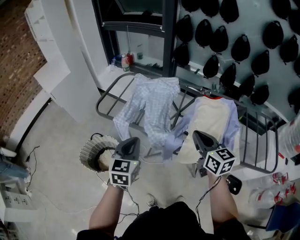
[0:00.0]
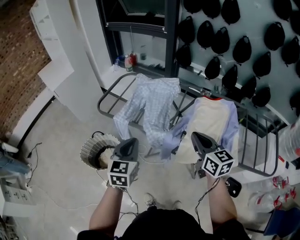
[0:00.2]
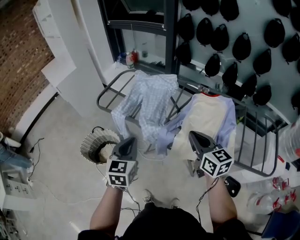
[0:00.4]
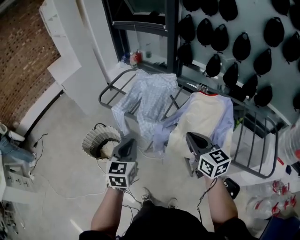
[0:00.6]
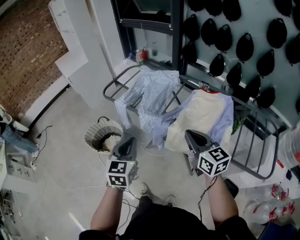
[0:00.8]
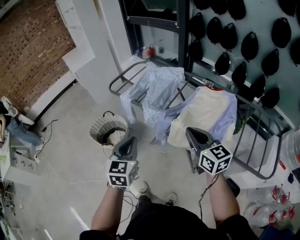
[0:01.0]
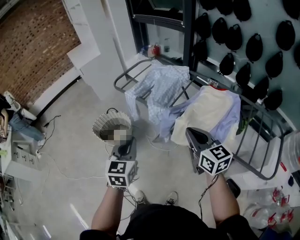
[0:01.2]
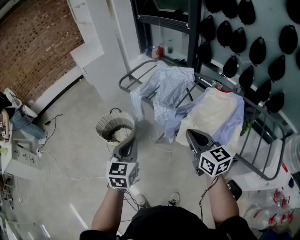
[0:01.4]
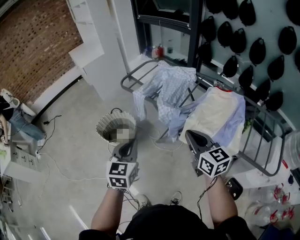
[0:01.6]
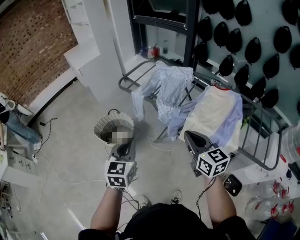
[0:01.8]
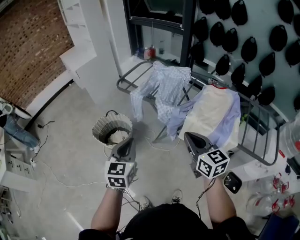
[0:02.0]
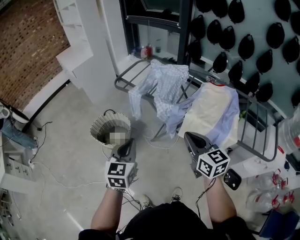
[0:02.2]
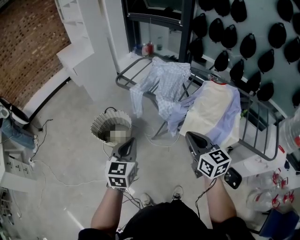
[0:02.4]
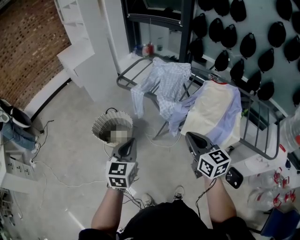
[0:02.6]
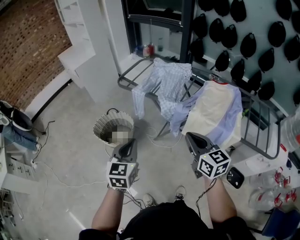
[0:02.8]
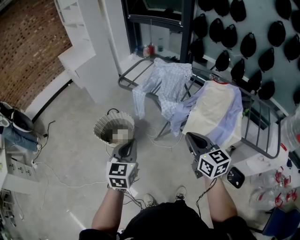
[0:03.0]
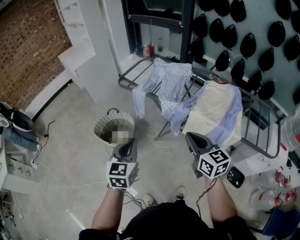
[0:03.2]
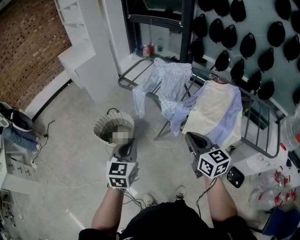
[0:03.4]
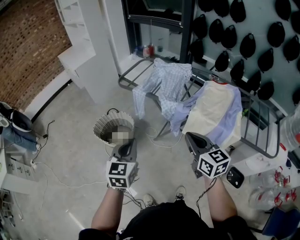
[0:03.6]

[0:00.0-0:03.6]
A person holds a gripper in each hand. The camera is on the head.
0:00.0 to 0:01.8: The right gripper is displaced backward and to the left by some 20 cm. Meanwhile the left gripper travels backward by approximately 20 cm.
0:01.8 to 0:03.6: The grippers move only a little.

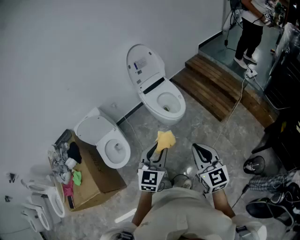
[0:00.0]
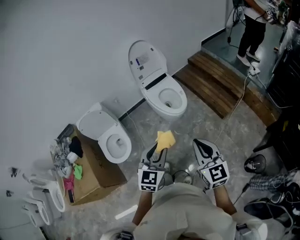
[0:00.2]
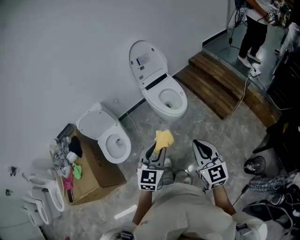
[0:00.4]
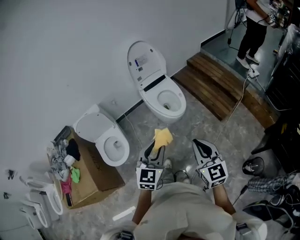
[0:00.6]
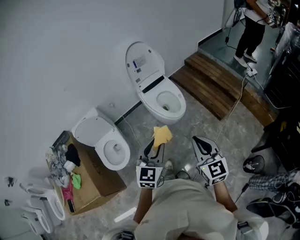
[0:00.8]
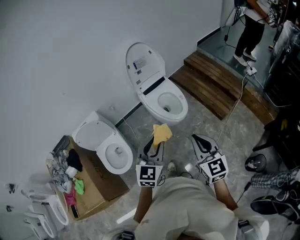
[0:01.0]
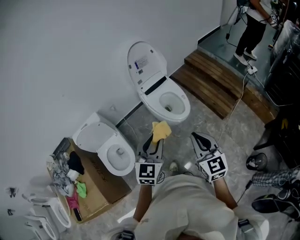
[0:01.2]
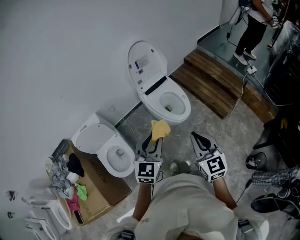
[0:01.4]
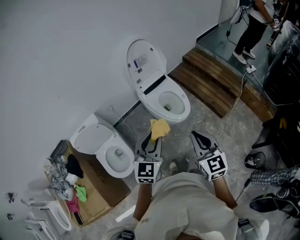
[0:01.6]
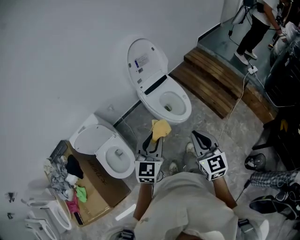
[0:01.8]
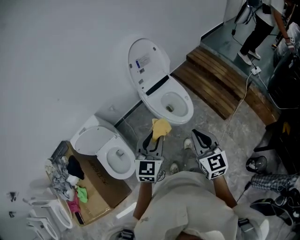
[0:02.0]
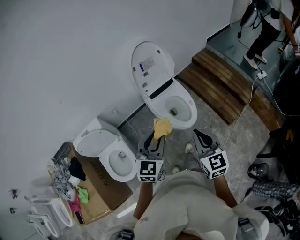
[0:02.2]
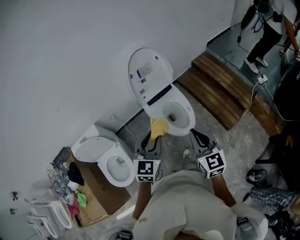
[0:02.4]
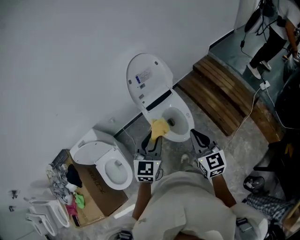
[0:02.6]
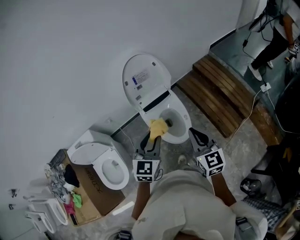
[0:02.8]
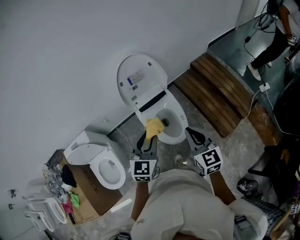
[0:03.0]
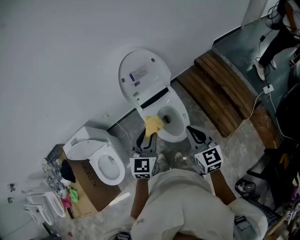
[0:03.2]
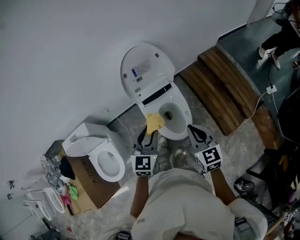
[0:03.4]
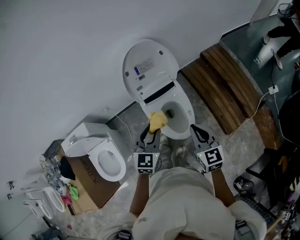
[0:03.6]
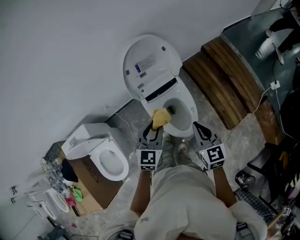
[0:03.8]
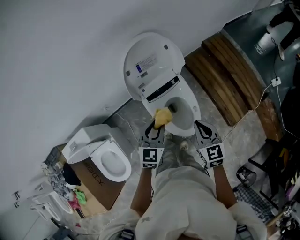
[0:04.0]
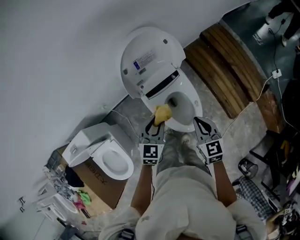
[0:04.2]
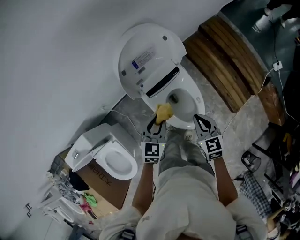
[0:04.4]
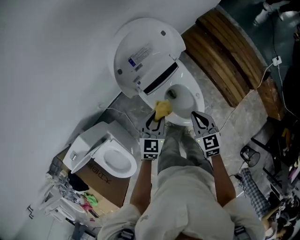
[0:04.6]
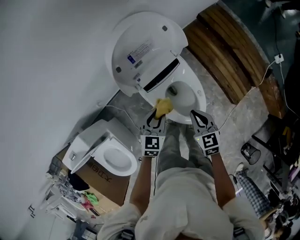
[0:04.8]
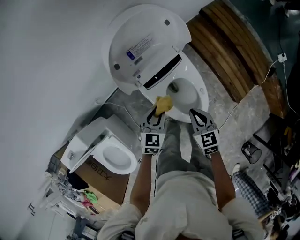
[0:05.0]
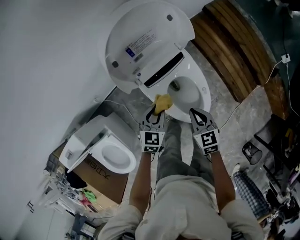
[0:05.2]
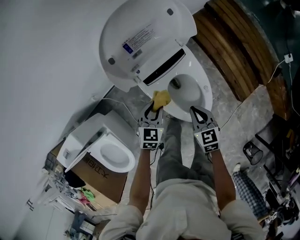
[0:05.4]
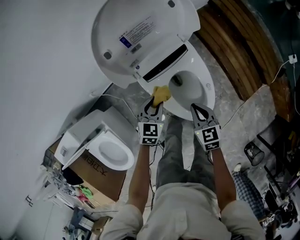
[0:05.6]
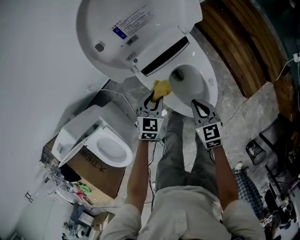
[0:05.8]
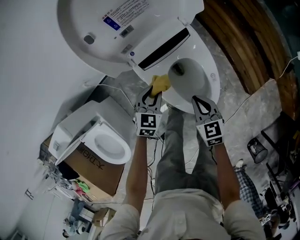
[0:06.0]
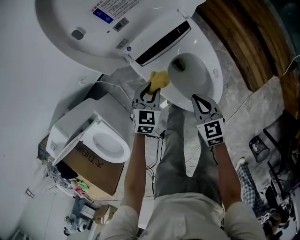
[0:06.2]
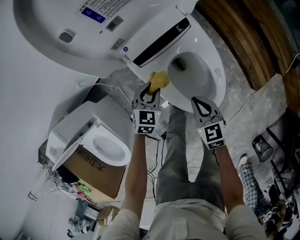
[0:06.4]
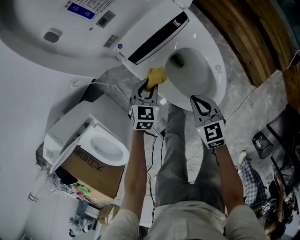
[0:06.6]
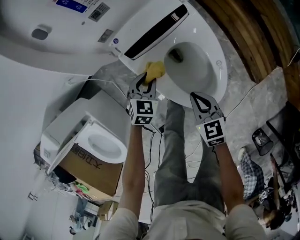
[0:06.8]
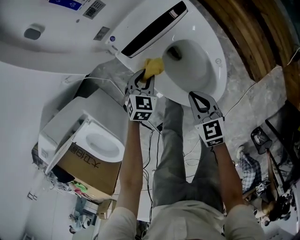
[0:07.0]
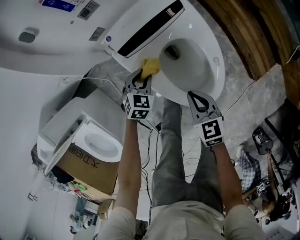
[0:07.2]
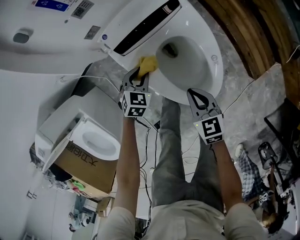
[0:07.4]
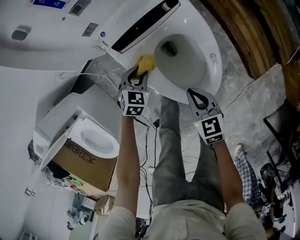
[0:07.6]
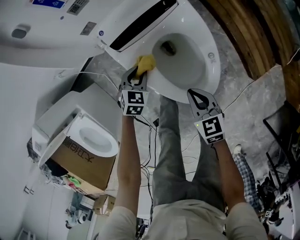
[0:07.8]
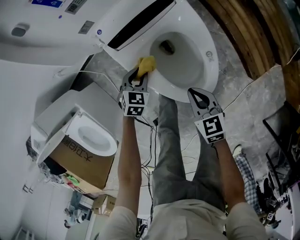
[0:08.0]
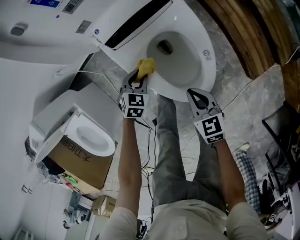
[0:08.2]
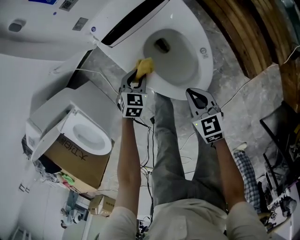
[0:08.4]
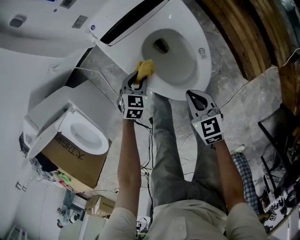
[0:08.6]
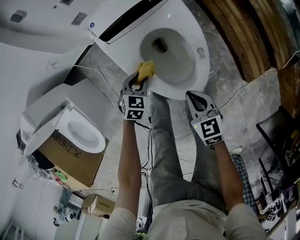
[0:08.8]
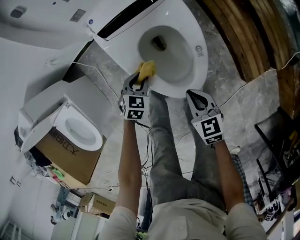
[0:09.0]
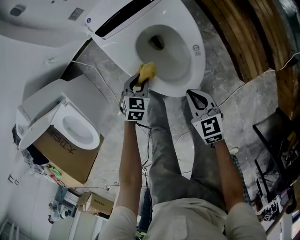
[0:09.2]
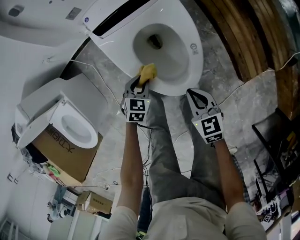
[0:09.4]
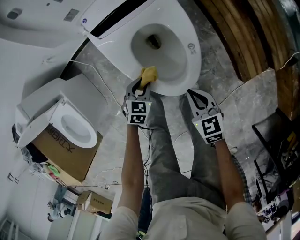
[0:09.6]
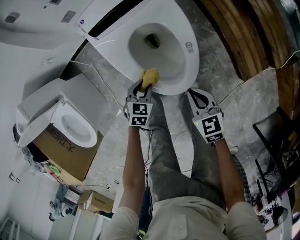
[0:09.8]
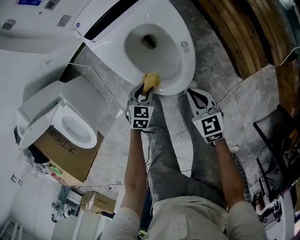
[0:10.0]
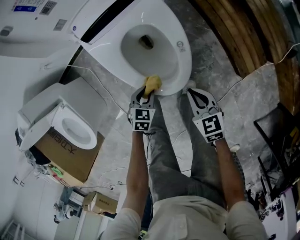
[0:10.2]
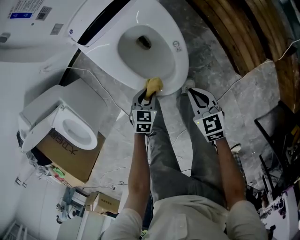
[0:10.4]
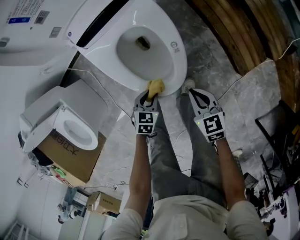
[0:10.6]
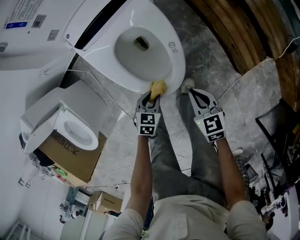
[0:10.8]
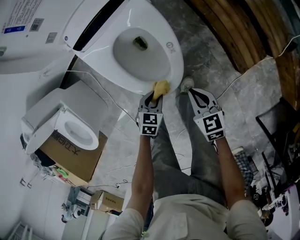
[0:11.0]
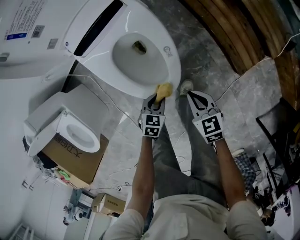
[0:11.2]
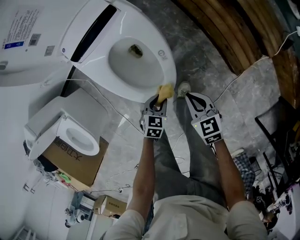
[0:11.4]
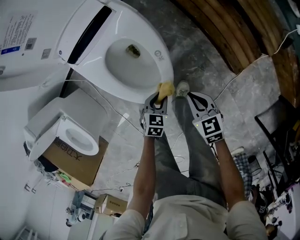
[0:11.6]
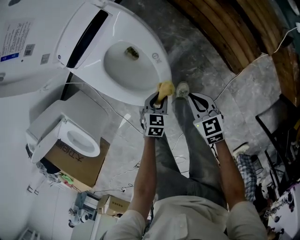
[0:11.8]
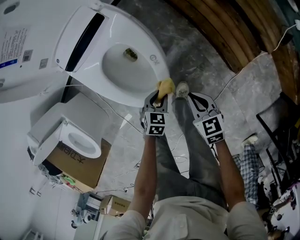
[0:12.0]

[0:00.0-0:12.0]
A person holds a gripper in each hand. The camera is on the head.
0:00.0 to 0:01.6: Both grippers move forward and to the left, some 20 cm.
0:01.6 to 0:03.0: The grippers both shift forward by about 25 cm.
0:03.0 to 0:04.4: The two grippers go approximately 30 cm downward and forward. The right gripper swivels some 20 degrees.
0:04.4 to 0:06.0: Both grippers travel together downward, some 25 cm.
0:06.0 to 0:07.6: The right gripper is displaced downward and backward by roughly 10 cm. The left gripper heads downward, covering approximately 15 cm.
0:07.6 to 0:09.0: The left gripper is displaced backward and to the right by about 10 cm. Meanwhile the right gripper goes roughly 10 cm to the right and backward.
0:09.0 to 0:10.4: The right gripper goes roughly 10 cm to the right, while the left gripper travels backward and to the right by roughly 15 cm.
0:10.4 to 0:12.0: The right gripper is displaced to the right by about 10 cm. The left gripper shifts roughly 15 cm to the right.

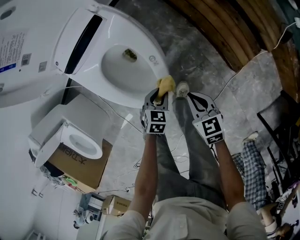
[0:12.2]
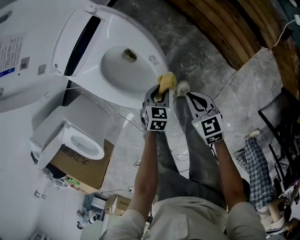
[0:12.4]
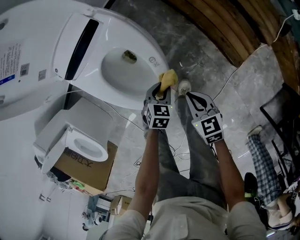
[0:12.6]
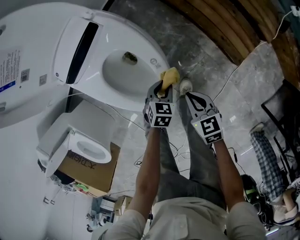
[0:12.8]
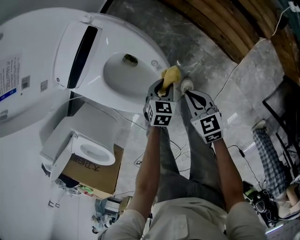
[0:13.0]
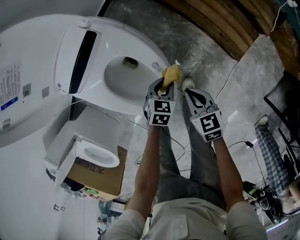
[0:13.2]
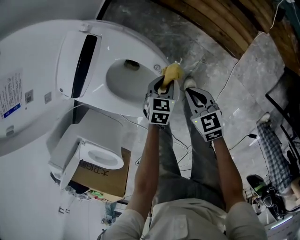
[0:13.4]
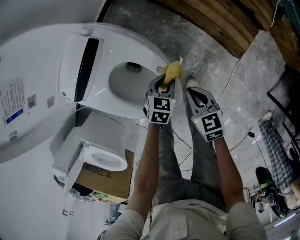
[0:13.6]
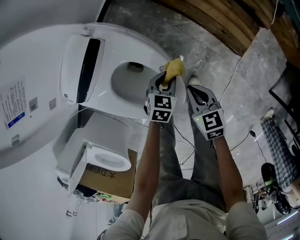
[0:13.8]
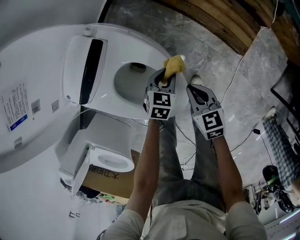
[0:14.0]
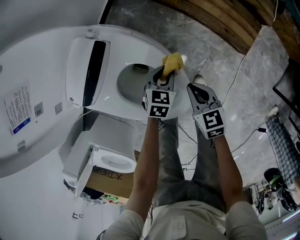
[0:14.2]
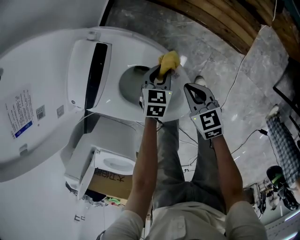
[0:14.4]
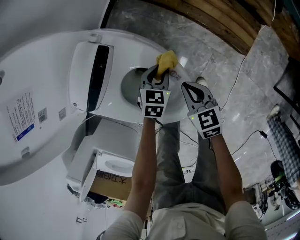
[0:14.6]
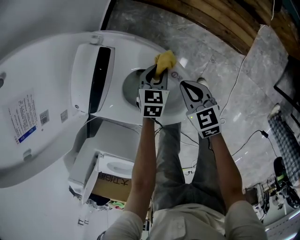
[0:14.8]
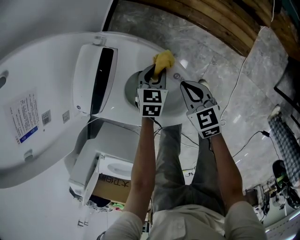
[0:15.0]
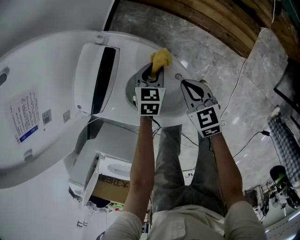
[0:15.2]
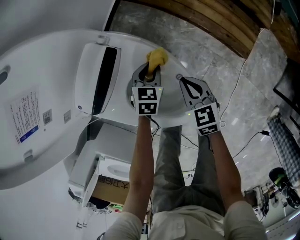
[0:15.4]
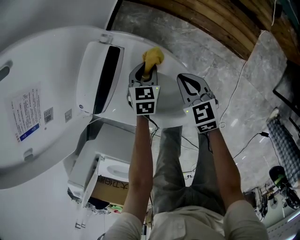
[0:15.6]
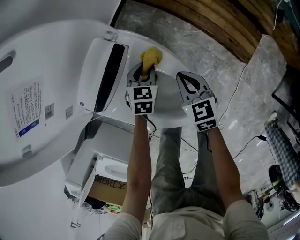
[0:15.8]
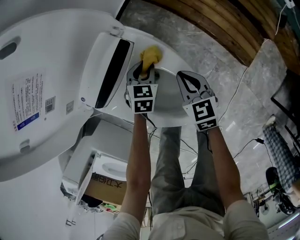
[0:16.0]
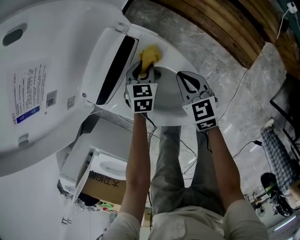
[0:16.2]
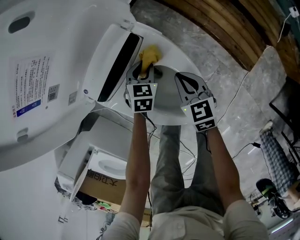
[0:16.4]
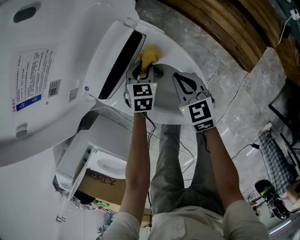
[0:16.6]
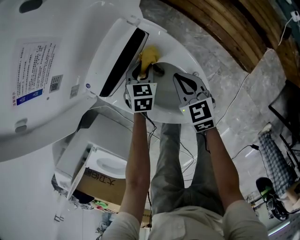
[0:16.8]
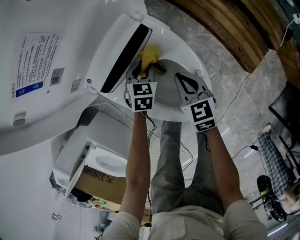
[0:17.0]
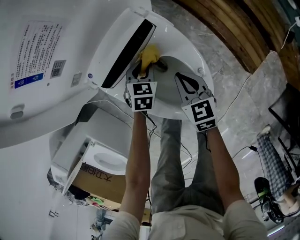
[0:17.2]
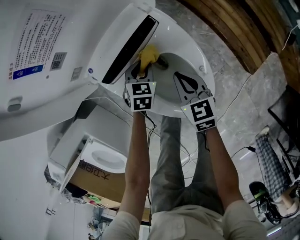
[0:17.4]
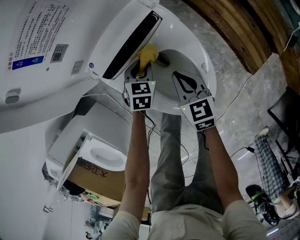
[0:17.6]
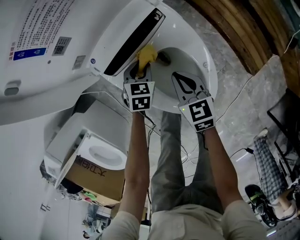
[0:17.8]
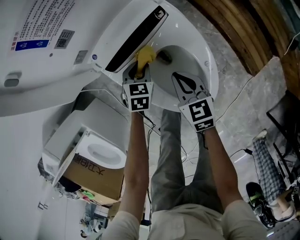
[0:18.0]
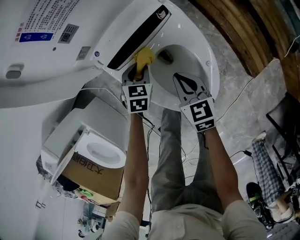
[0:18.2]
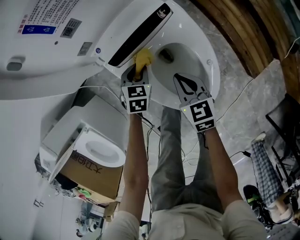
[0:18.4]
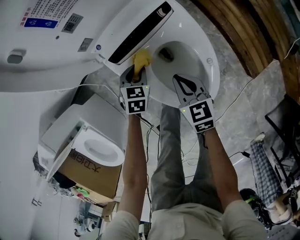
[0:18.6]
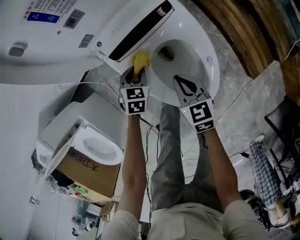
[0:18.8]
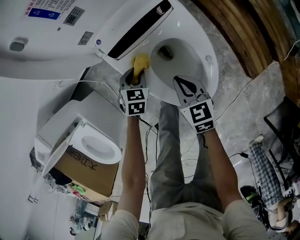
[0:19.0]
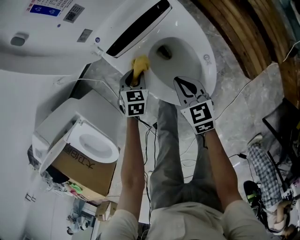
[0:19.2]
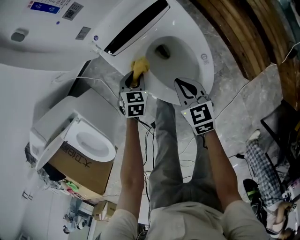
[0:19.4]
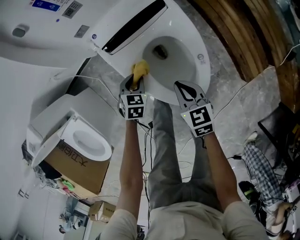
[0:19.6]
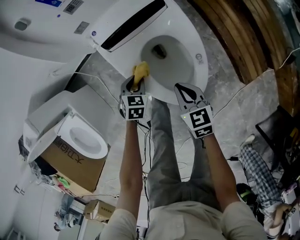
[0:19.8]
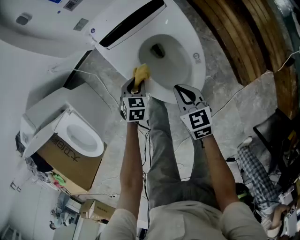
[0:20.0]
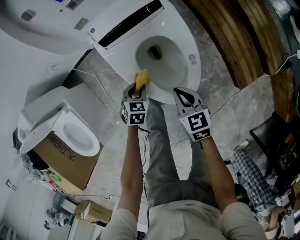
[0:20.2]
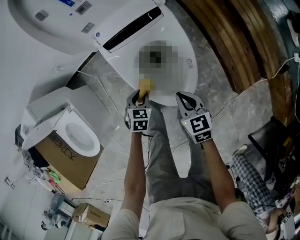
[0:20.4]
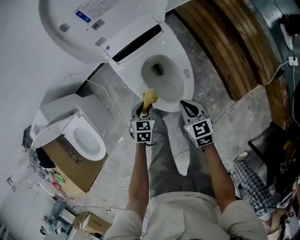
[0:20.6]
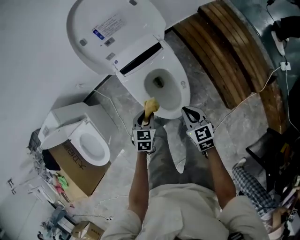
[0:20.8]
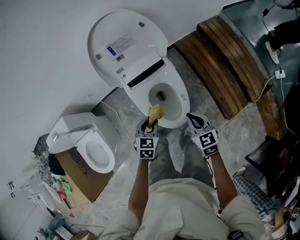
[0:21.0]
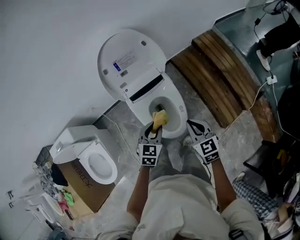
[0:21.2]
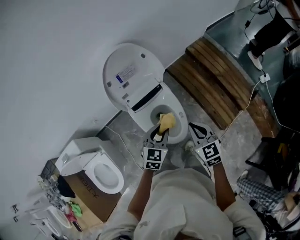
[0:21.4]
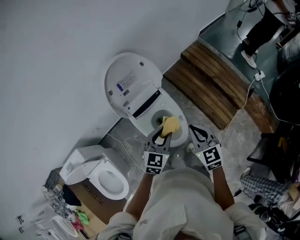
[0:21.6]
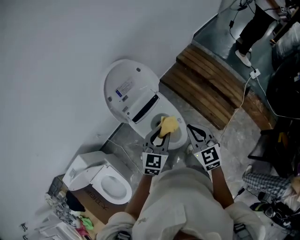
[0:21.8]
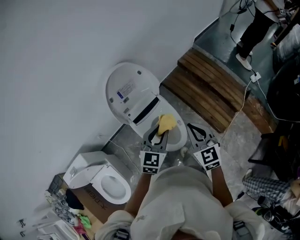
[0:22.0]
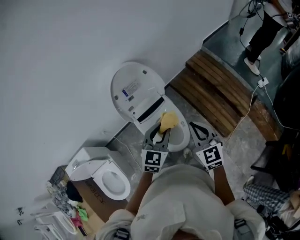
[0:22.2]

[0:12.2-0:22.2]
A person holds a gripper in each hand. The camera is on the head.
0:12.2 to 0:13.6: The left gripper shifts some 10 cm forward. Meanwhile the right gripper goes some 5 cm to the left.
0:13.6 to 0:15.0: Both grippers travel together to the left and forward, roughly 10 cm.
0:15.0 to 0:16.4: The grippers both shift to the left by some 10 cm.
0:16.4 to 0:18.0: The grippers both shift to the left and backward by roughly 10 cm.
0:18.0 to 0:19.4: Both grippers move backward, some 10 cm.
0:19.4 to 0:20.8: The right gripper goes about 20 cm upward, to the right and backward, while the left gripper shifts approximately 25 cm upward and backward.
0:20.8 to 0:22.2: The grippers both shift upward by about 35 cm. The left gripper angles its fingers upward, by roughly 30 degrees, while the right gripper rotates about 30 degrees.
